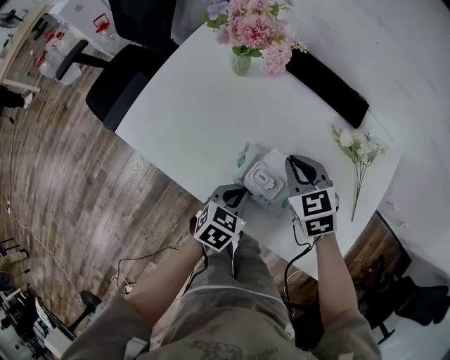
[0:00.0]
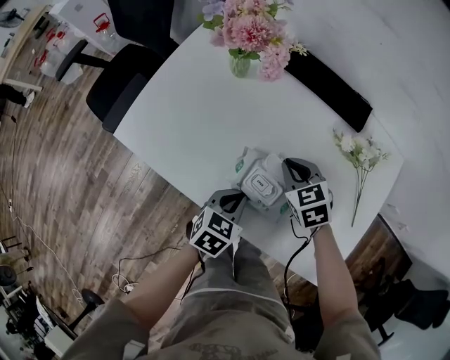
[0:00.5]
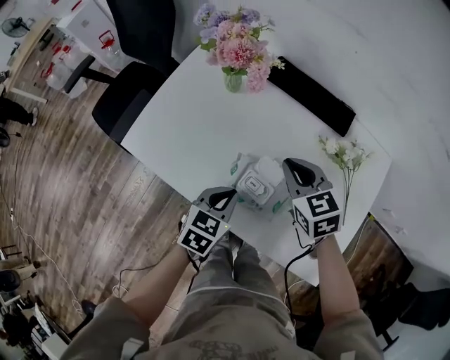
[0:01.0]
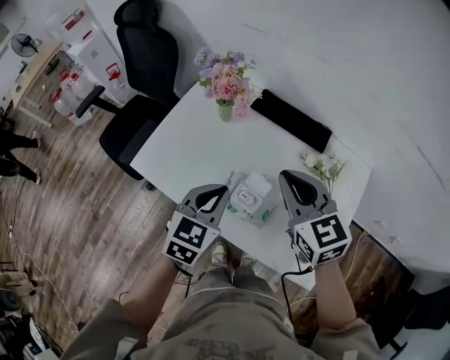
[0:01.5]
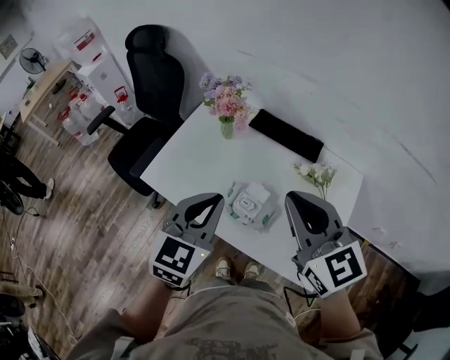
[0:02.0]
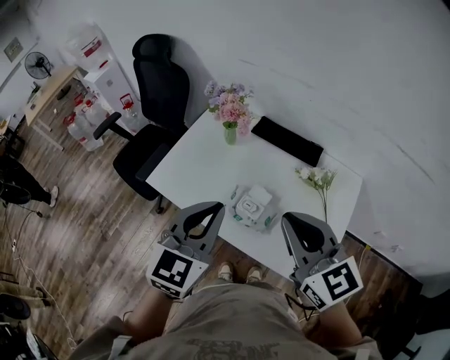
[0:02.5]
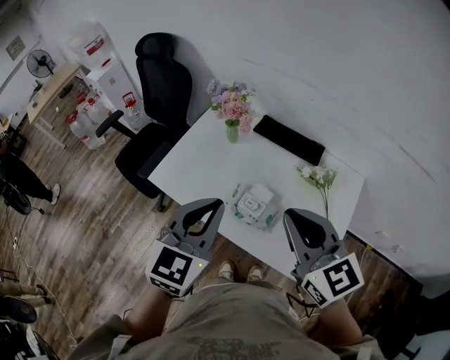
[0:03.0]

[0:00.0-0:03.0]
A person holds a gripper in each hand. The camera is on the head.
0:00.0 to 0:01.5: Both grippers travel together upward, roughly 20 cm. The left gripper changes its angle by approximately 20 degrees, while the right gripper rotates roughly 20 degrees.
0:01.5 to 0:03.0: The left gripper is displaced upward and backward by approximately 20 cm. The right gripper travels backward and upward by some 15 cm.

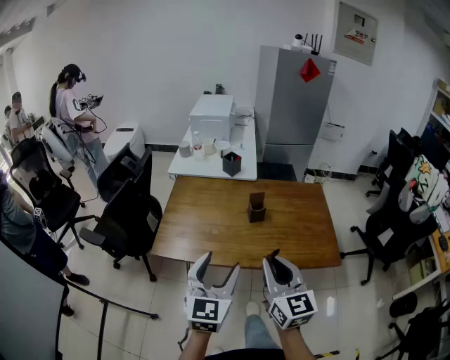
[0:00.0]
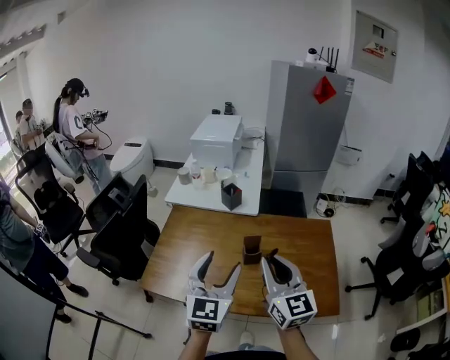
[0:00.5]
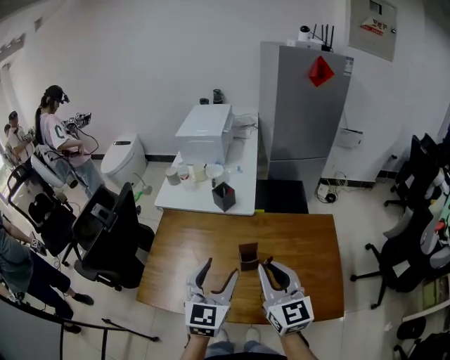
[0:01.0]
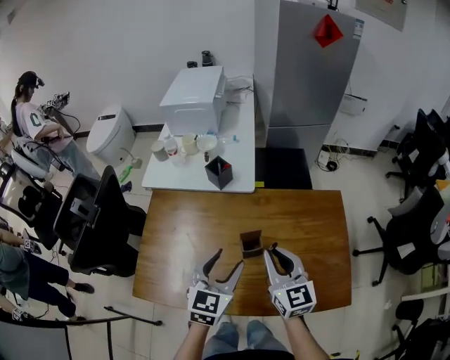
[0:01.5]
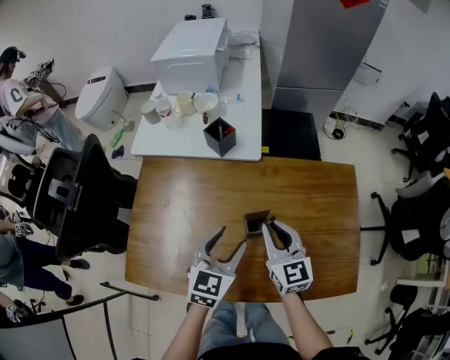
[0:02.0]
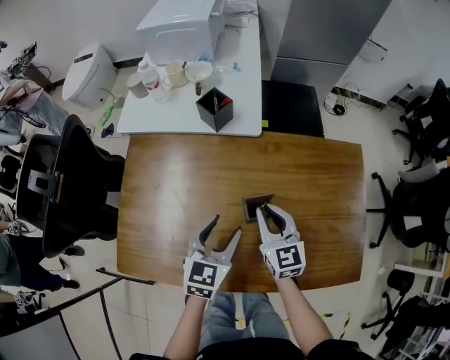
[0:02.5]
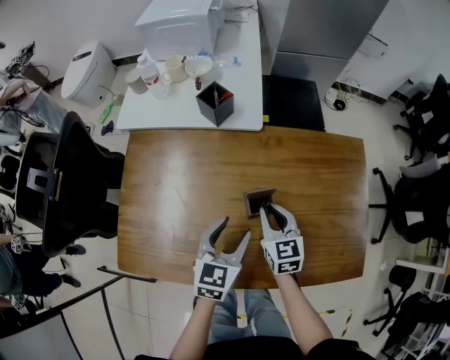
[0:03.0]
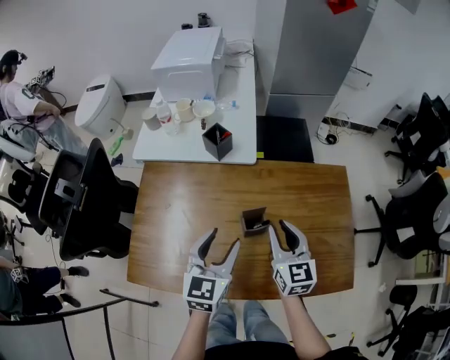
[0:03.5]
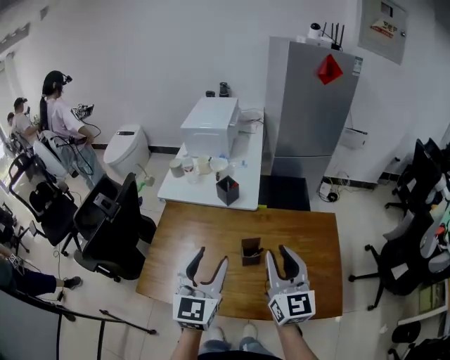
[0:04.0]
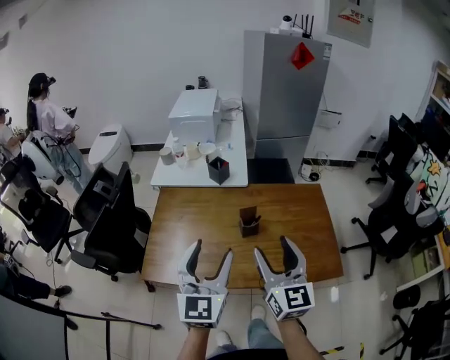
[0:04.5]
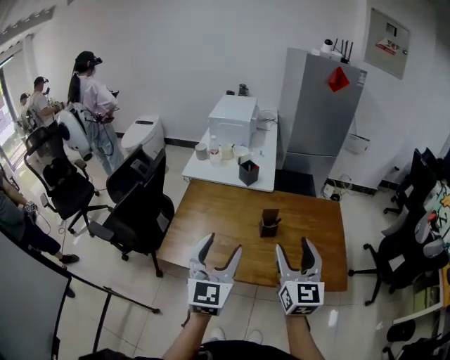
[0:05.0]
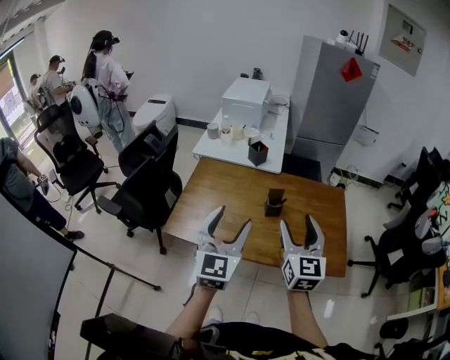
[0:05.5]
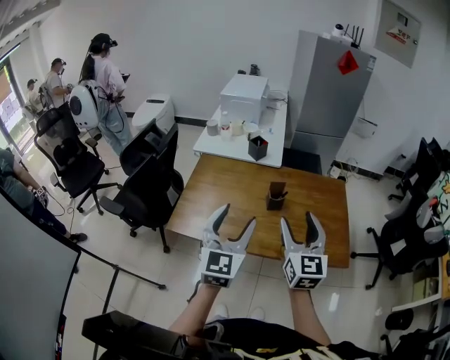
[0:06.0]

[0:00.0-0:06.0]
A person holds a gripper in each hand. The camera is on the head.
0:00.0 to 0:02.0: Both grippers travel together forward and downward, about 40 cm. The left gripper turns by approximately 30 degrees.
0:02.0 to 0:04.0: Both grippers travel together upward and backward, roughly 25 cm. The left gripper changes its angle by about 30 degrees.
0:04.0 to 0:06.0: The grippers both shift backward by roughly 20 cm. The right gripper opens its fingers.

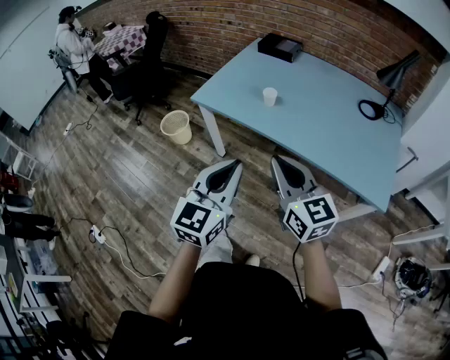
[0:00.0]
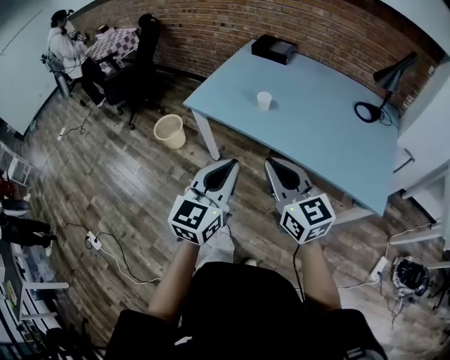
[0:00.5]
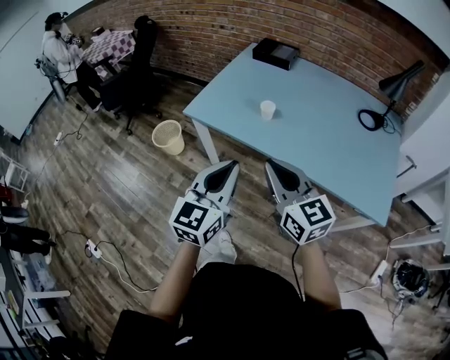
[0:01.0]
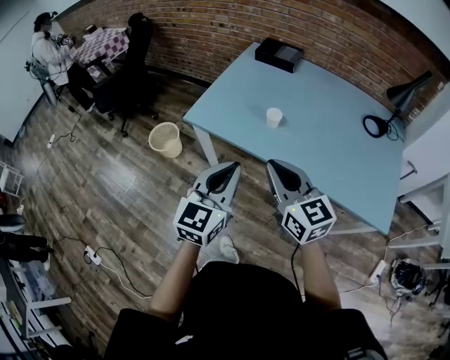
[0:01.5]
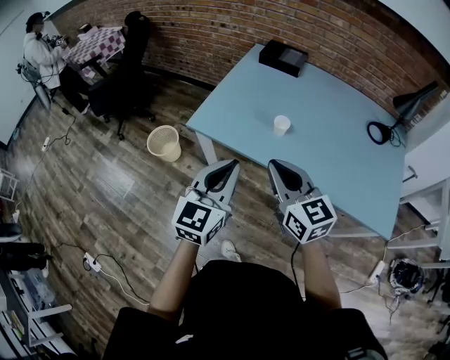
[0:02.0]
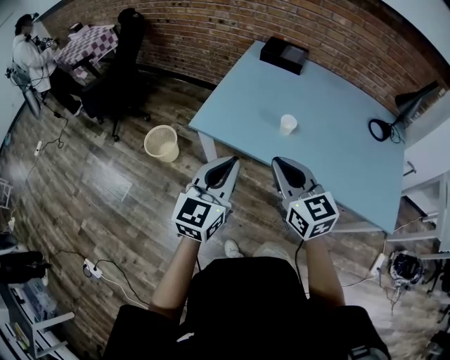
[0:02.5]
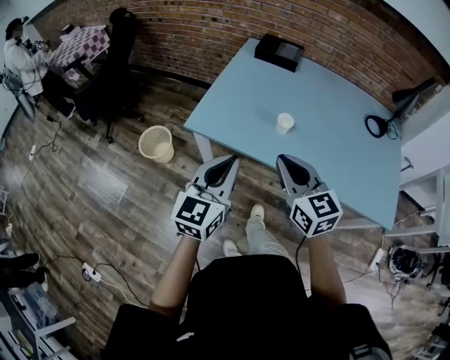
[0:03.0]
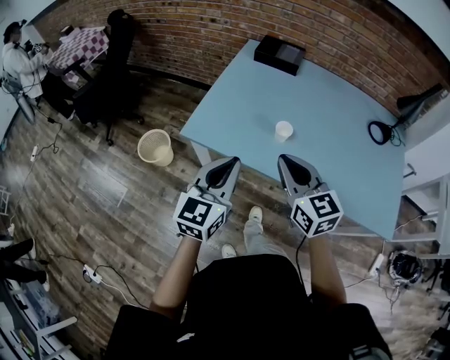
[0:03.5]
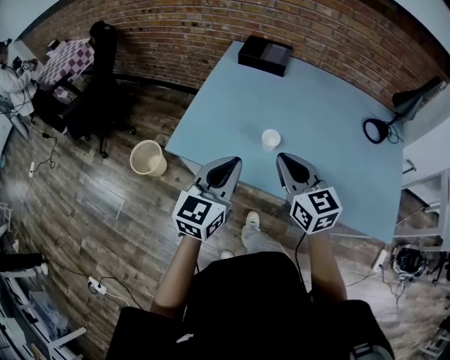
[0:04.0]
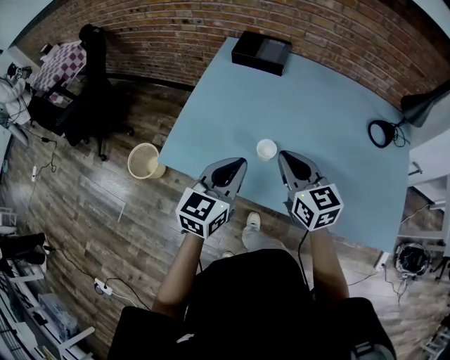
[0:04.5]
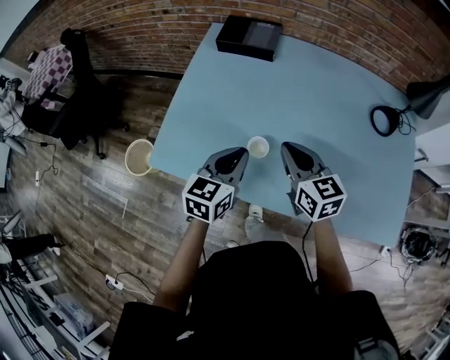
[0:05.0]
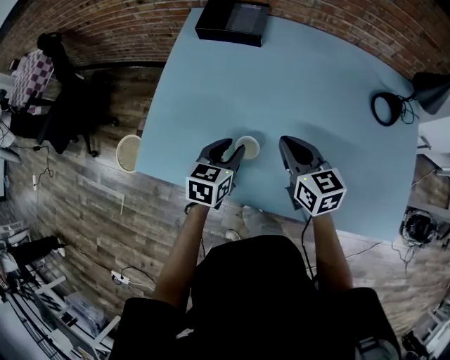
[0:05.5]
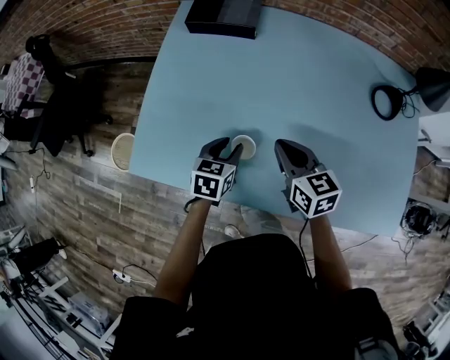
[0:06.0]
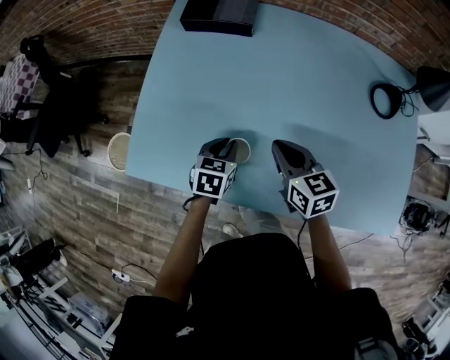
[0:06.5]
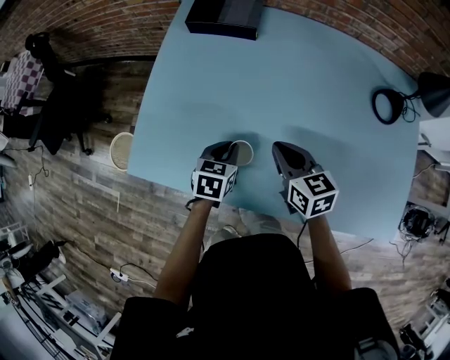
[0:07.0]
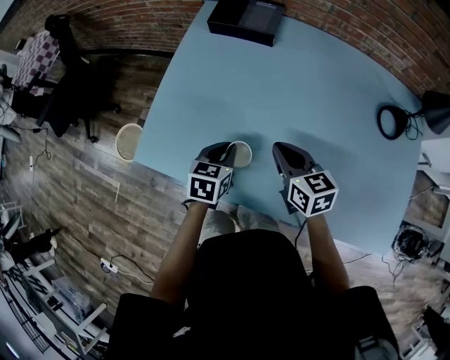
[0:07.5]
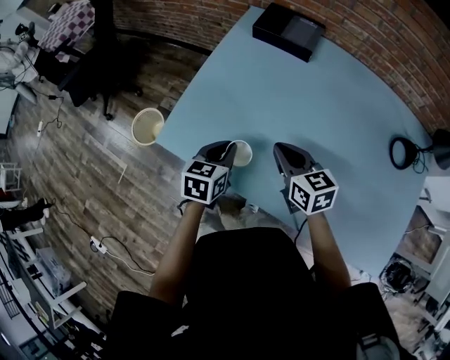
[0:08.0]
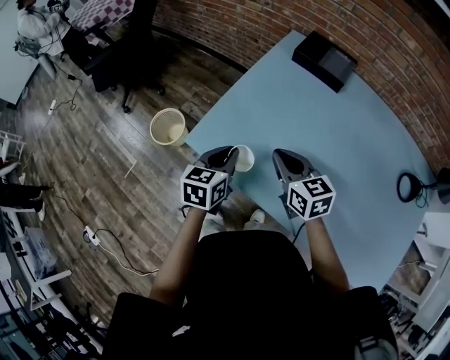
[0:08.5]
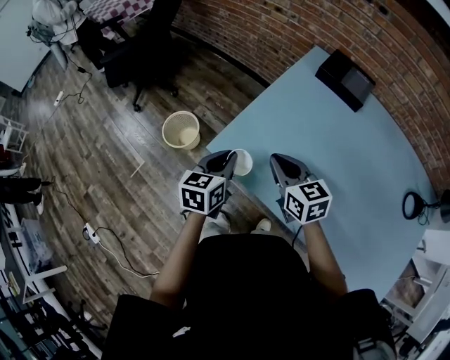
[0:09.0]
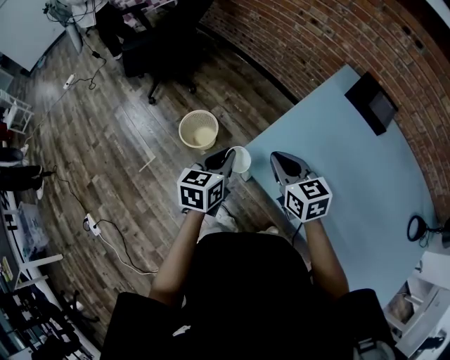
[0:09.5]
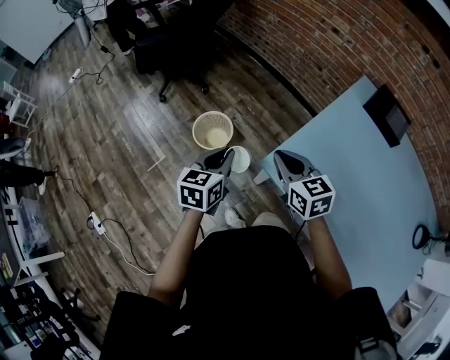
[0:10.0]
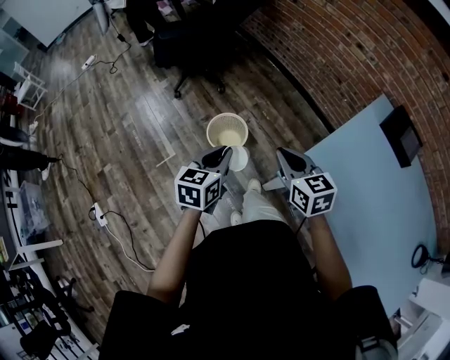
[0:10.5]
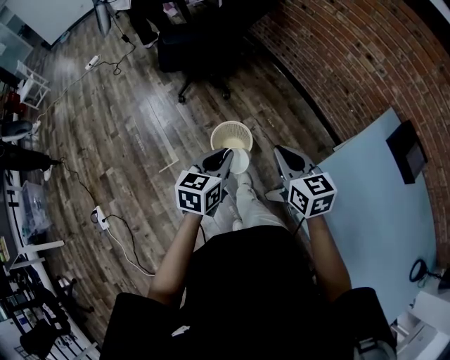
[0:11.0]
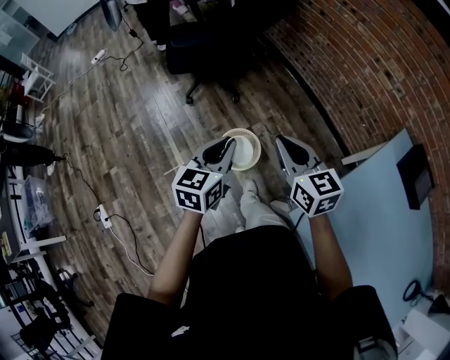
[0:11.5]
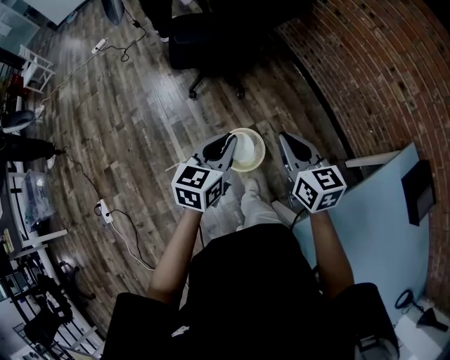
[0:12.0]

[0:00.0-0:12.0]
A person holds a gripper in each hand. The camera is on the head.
0:00.0 to 0:02.0: Both grippers travel together forward and to the left, roughly 25 cm.
0:02.0 to 0:04.0: Both grippers travel together forward, some 15 cm.
0:04.0 to 0:06.0: The left gripper travels downward and forward by some 30 cm, points its fingers some 40 degrees further downward, and opens up. Meanwhile the right gripper goes some 25 cm forward, downward and to the right, and rotates approximately 20 degrees.
0:06.0 to 0:08.0: The left gripper goes some 10 cm to the left and upward, and closes its fingers. The right gripper travels to the left by approximately 10 cm.
0:08.0 to 0:10.0: Both grippers are carried to the left, roughly 40 cm. The right gripper turns by some 20 degrees. Meanwhile the left gripper turns by roughly 20 degrees.
0:10.0 to 0:12.0: Both grippers move forward and to the left, about 30 cm.

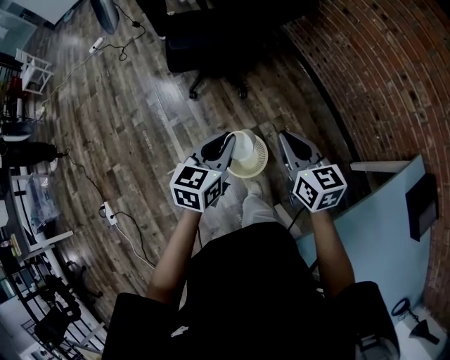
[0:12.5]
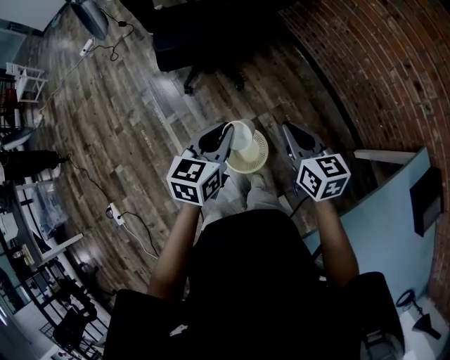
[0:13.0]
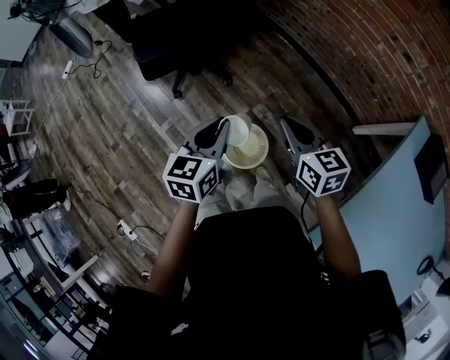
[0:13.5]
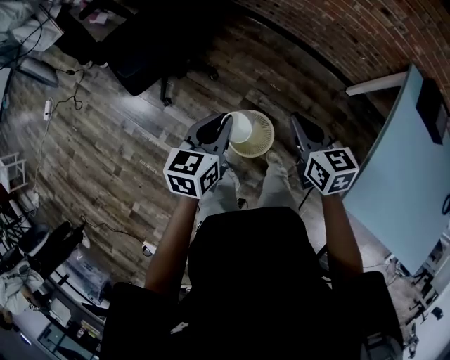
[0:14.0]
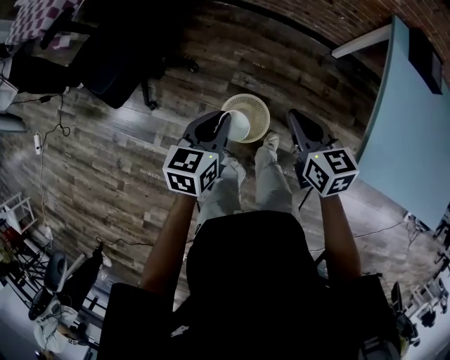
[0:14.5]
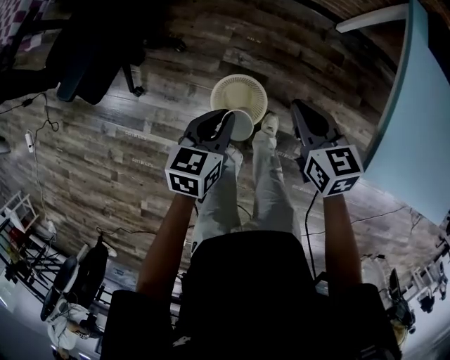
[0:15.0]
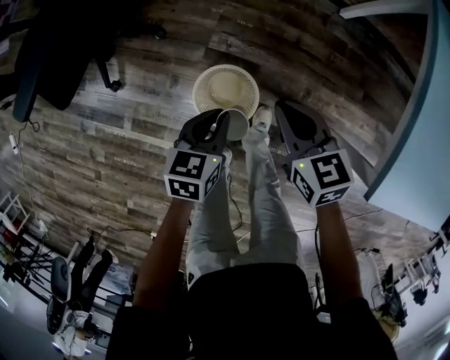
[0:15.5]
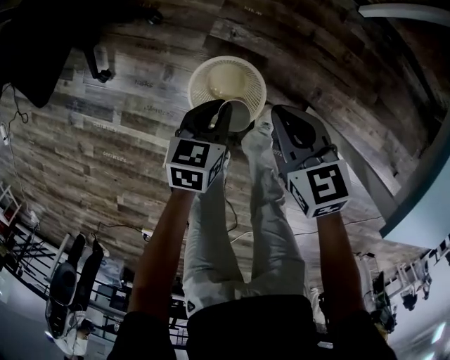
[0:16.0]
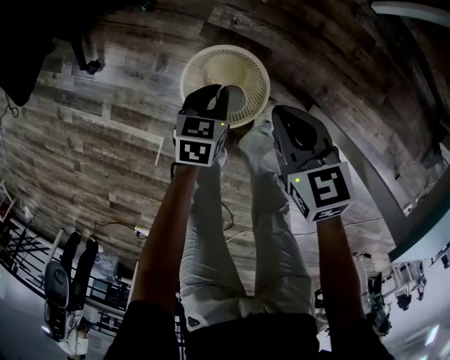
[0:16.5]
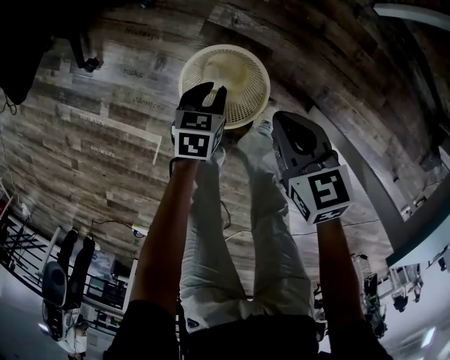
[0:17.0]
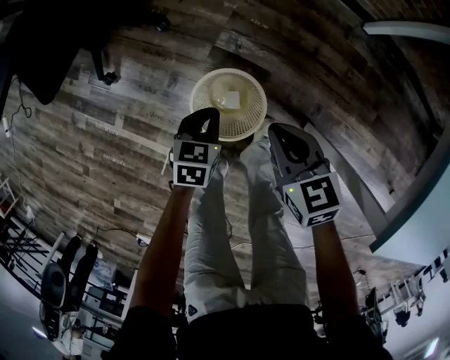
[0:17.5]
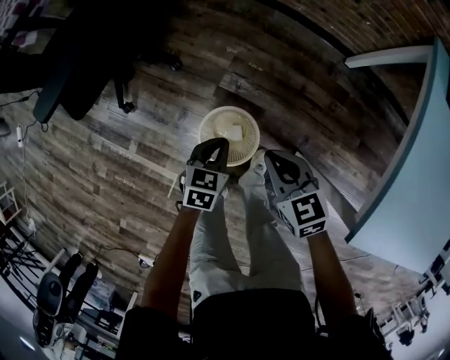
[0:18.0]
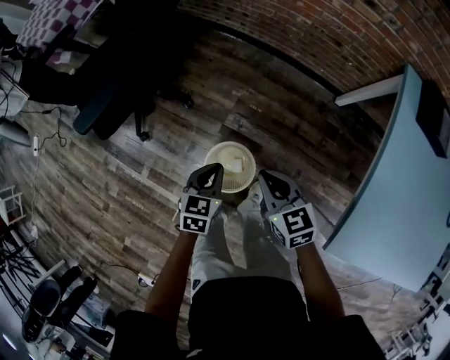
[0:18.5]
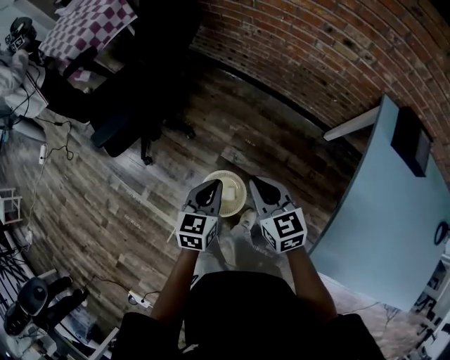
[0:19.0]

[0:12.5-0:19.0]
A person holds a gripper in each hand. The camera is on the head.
0:12.5 to 0:14.5: Both grippers travel together downward, about 10 cm. The right gripper turns by some 40 degrees; the left gripper changes its angle by some 40 degrees.
0:14.5 to 0:17.0: Both grippers move downward, approximately 50 cm. The left gripper turns by about 30 degrees.
0:17.0 to 0:19.0: The grippers both shift upward by about 40 cm. The left gripper changes its angle by roughly 30 degrees, and closes up. The right gripper swivels roughly 20 degrees.
